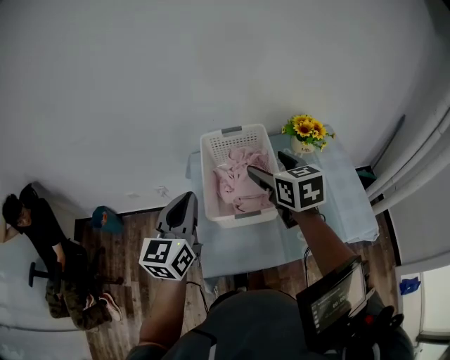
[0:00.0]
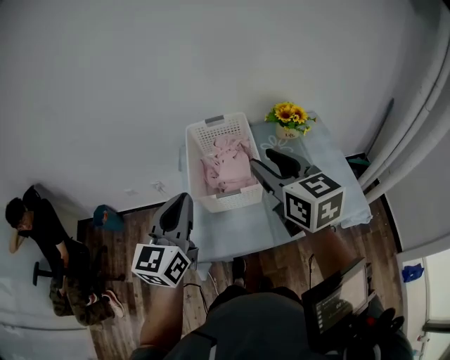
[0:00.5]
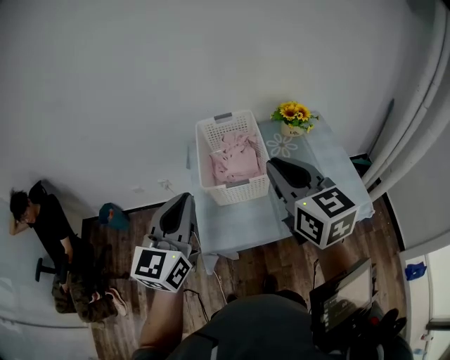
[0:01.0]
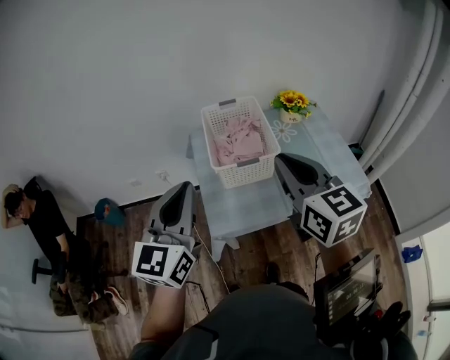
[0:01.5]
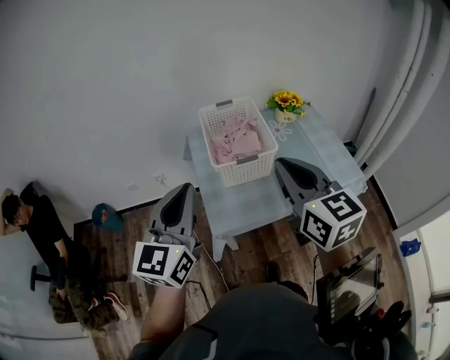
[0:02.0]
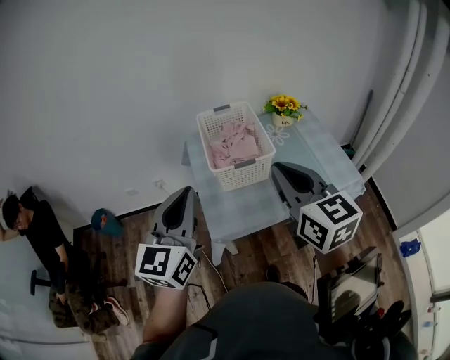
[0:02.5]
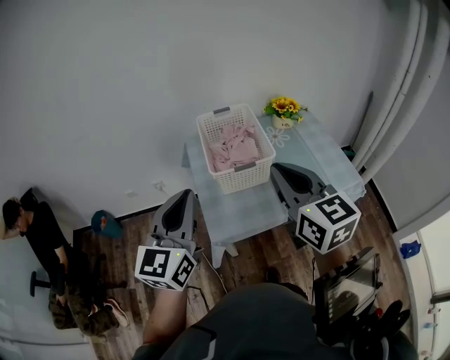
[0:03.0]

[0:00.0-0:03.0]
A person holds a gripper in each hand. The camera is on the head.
0:00.0 to 0:01.5: The right gripper shifts some 30 cm backward and upward, and closes its fingers; the left gripper goes about 20 cm backward.
0:01.5 to 0:03.0: The grippers move only a little.

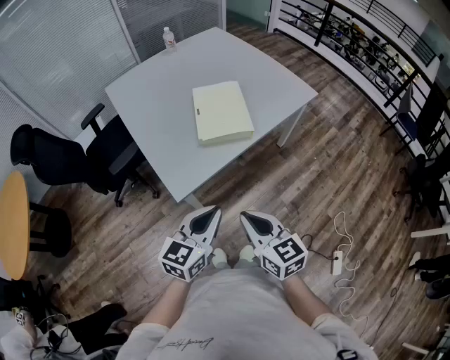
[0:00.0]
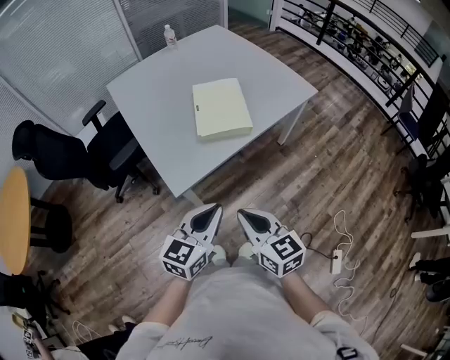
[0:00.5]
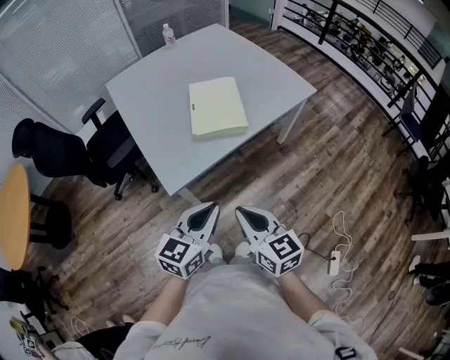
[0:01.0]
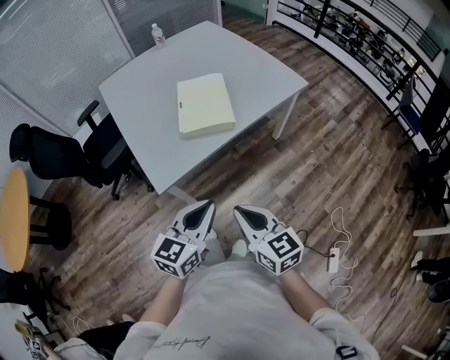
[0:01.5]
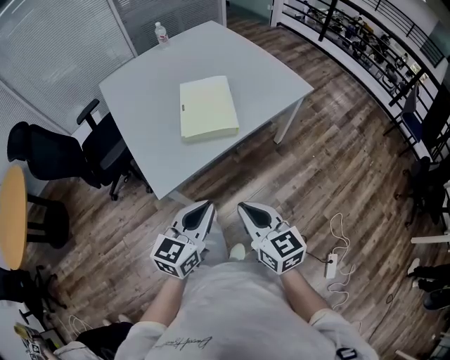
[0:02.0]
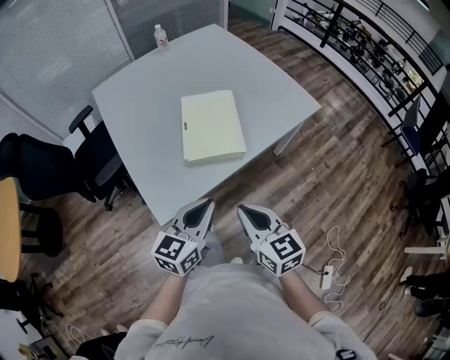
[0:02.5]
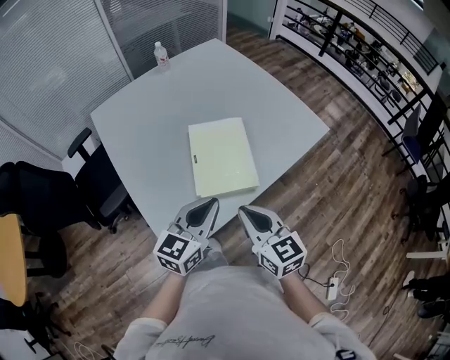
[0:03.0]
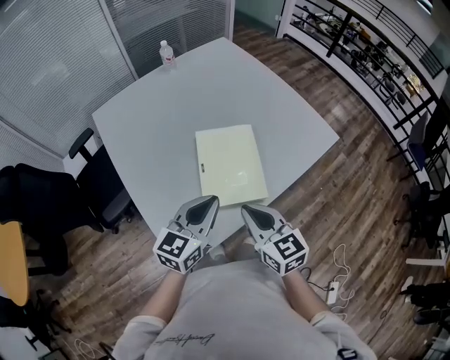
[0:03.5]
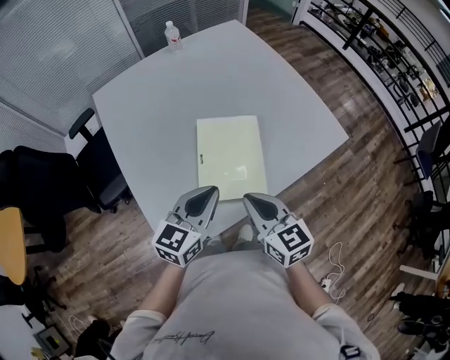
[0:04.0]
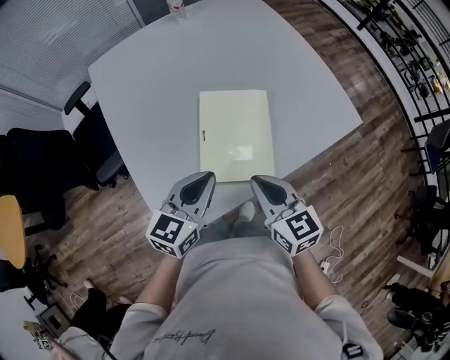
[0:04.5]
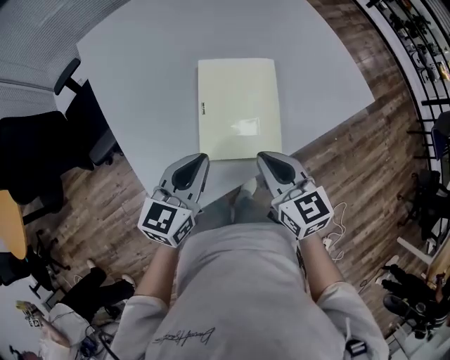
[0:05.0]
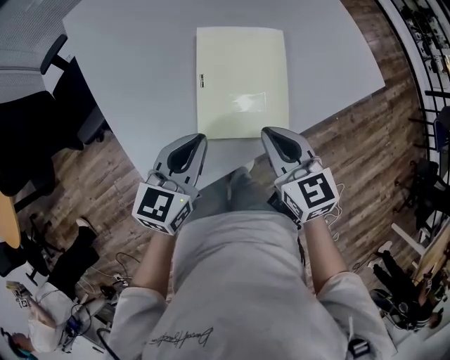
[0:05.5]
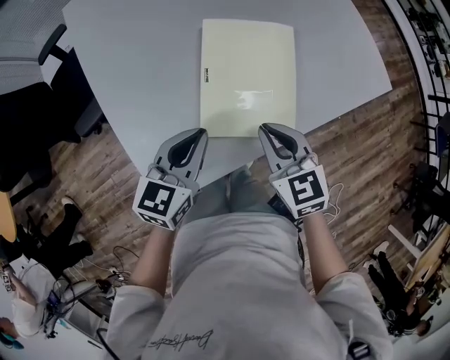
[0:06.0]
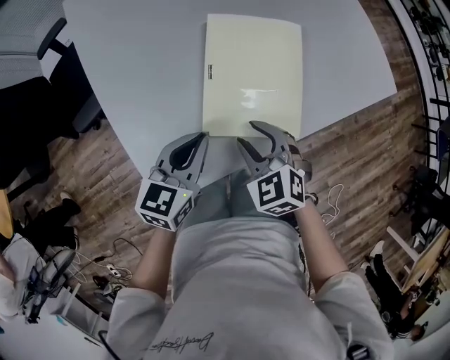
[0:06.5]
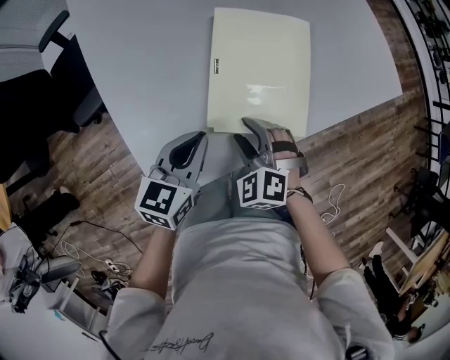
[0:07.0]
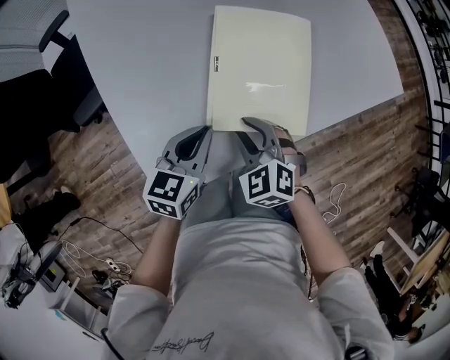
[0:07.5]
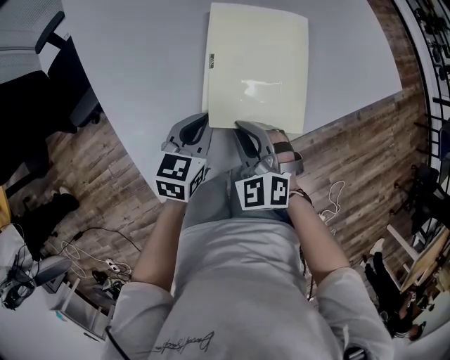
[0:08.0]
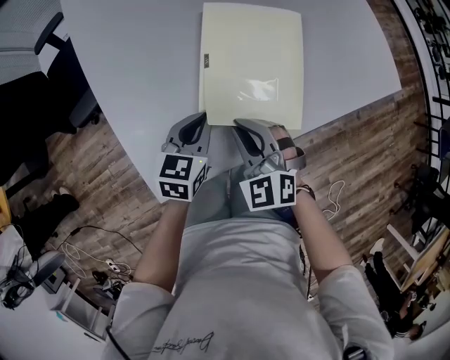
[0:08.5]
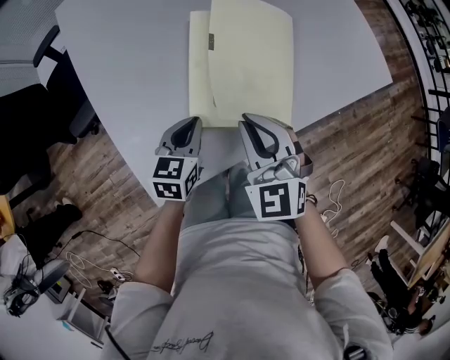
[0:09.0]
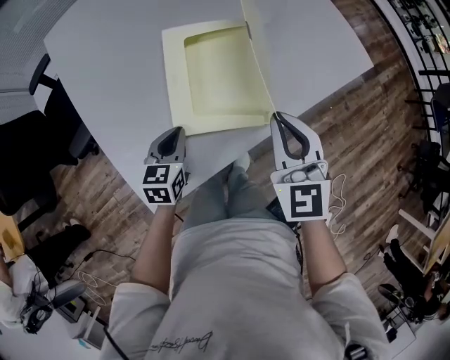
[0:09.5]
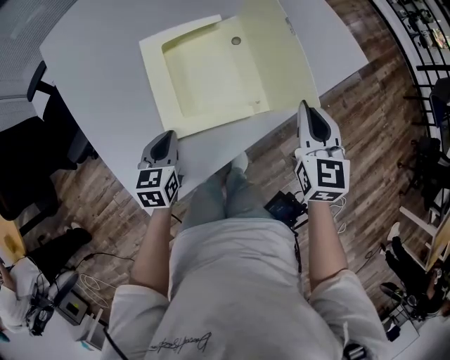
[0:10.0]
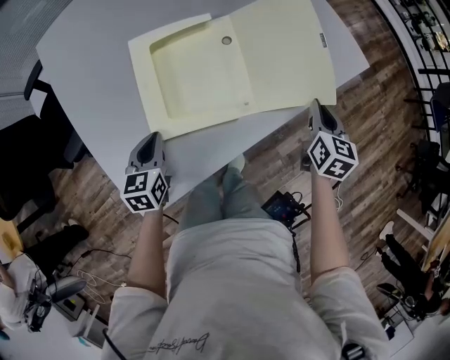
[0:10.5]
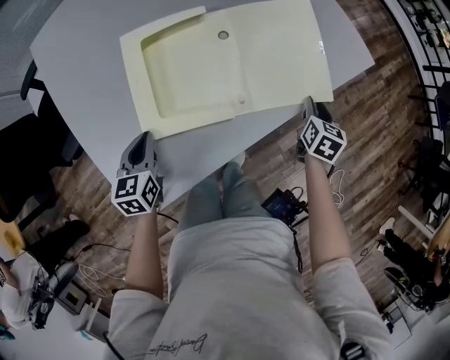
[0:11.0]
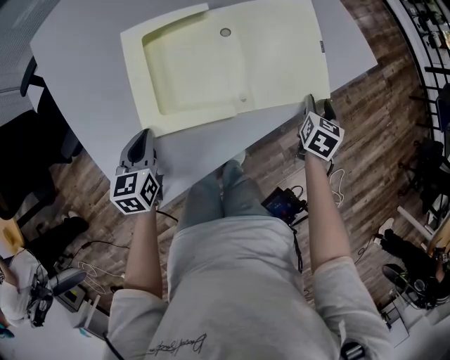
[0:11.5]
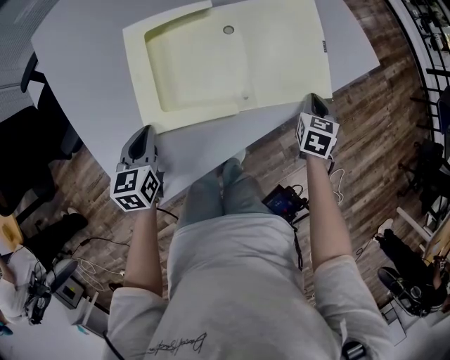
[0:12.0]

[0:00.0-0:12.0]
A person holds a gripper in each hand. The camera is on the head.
0:00.0 to 0:02.0: The two grippers go about 5 cm to the right.
0:02.0 to 0:04.0: Both grippers move forward, approximately 30 cm.
0:04.0 to 0:06.0: The right gripper heads downward, covering approximately 10 cm. Meanwhile the left gripper is displaced downward and to the left by about 10 cm.
0:06.0 to 0:08.0: The left gripper heads downward, covering approximately 10 cm. Meanwhile the right gripper travels downward and to the left by about 10 cm, rotates about 30 degrees, and opens, then closes again.
0:08.0 to 0:10.0: The right gripper is displaced to the right and upward by some 25 cm, and rolls clockwise, seen from behind, by roughly 40 degrees.
0:10.0 to 0:12.0: The right gripper shifts approximately 20 cm downward and to the right, swivels roughly 30 degrees, and opens, then closes again.

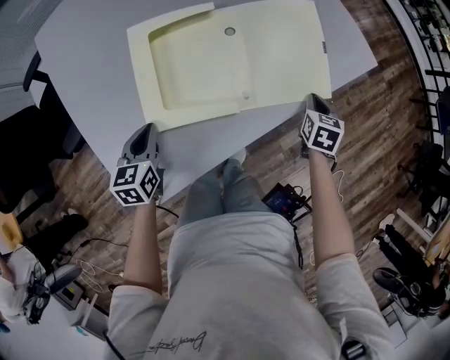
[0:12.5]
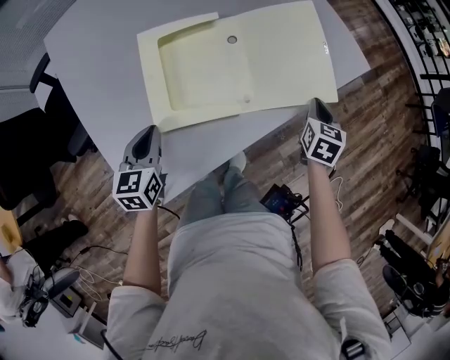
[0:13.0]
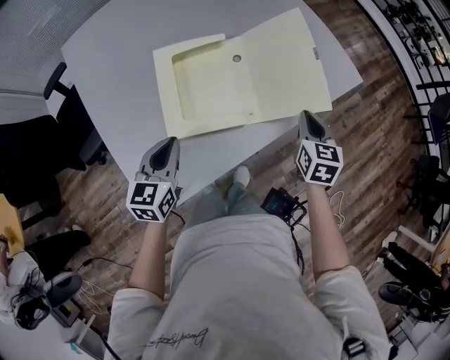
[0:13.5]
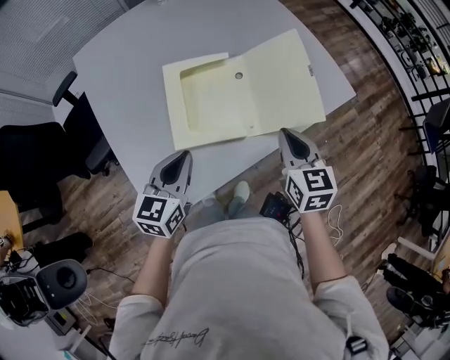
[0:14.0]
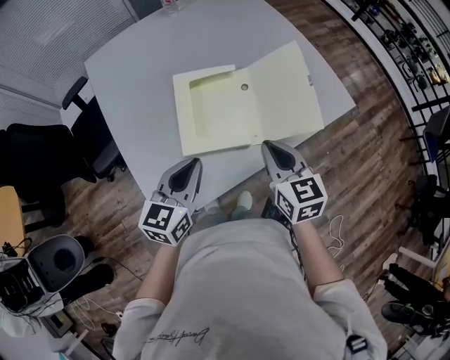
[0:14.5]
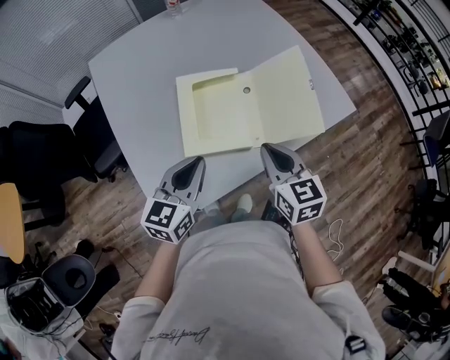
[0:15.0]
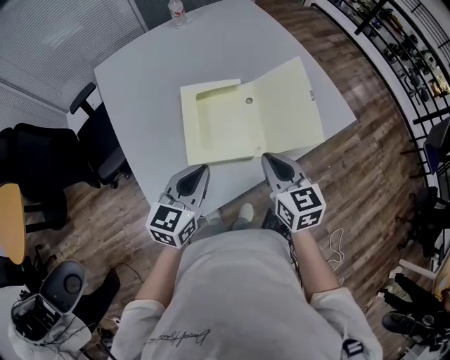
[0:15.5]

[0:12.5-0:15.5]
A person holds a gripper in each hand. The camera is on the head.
0:12.5 to 0:14.0: The left gripper moves upward and to the right, some 15 cm, and rotates some 20 degrees. Meanwhile the right gripper goes roughly 25 cm upward and to the left, and changes its angle by some 30 degrees.
0:14.0 to 0:15.5: The right gripper travels to the left by roughly 5 cm.

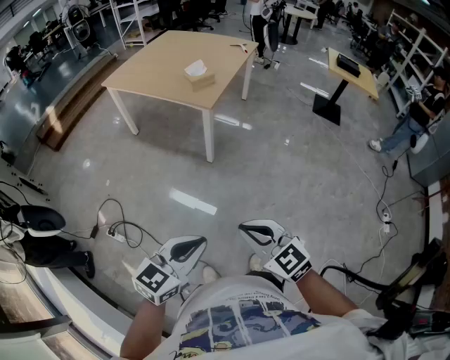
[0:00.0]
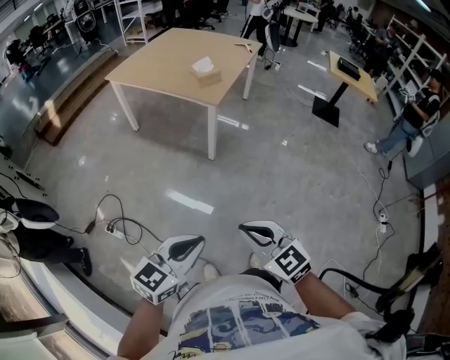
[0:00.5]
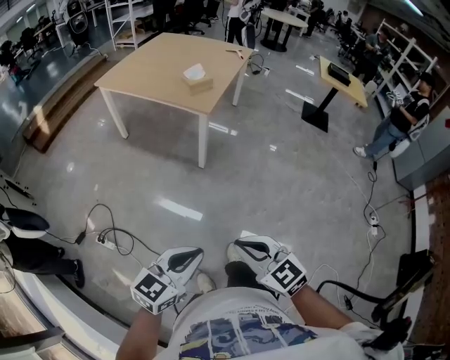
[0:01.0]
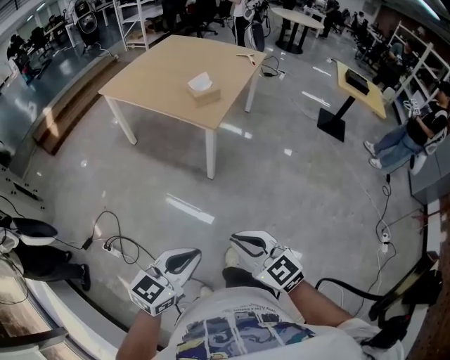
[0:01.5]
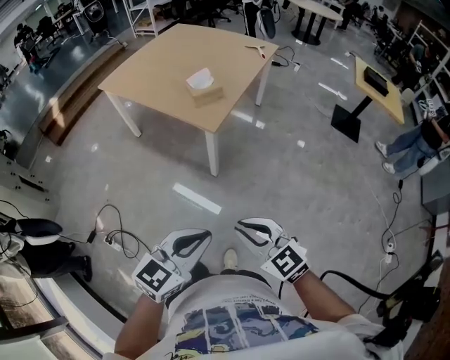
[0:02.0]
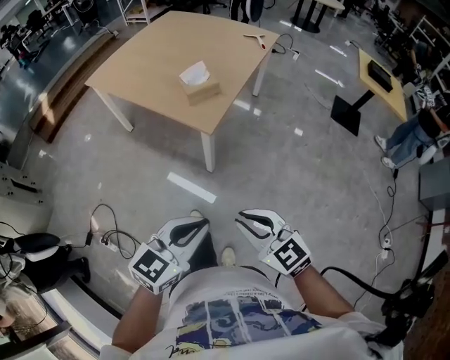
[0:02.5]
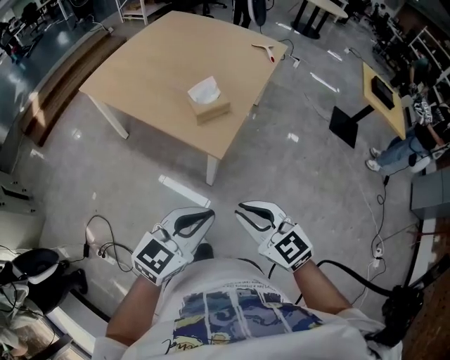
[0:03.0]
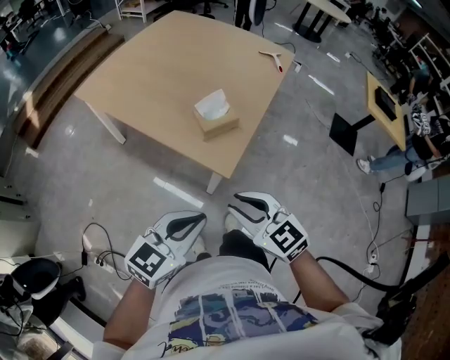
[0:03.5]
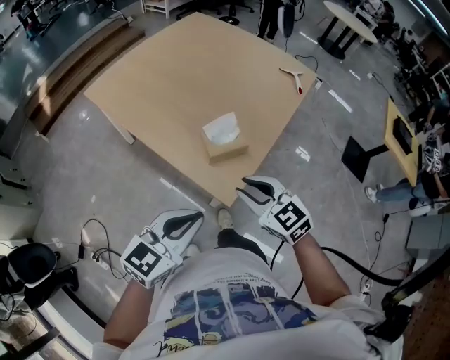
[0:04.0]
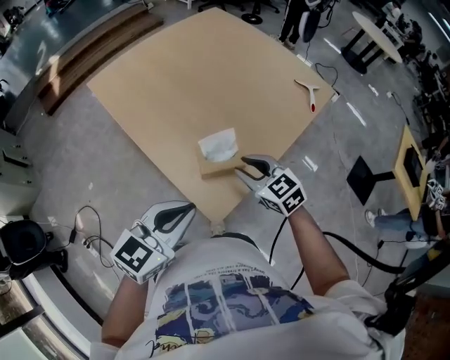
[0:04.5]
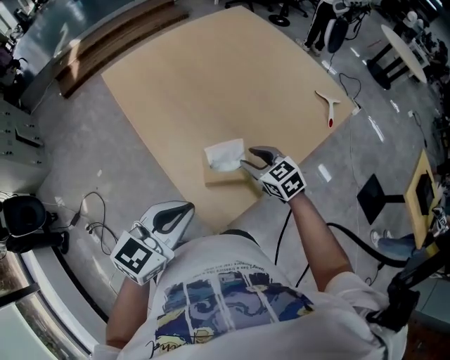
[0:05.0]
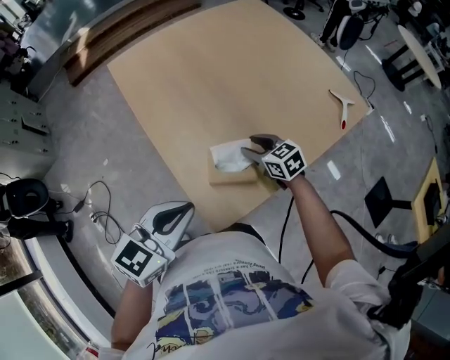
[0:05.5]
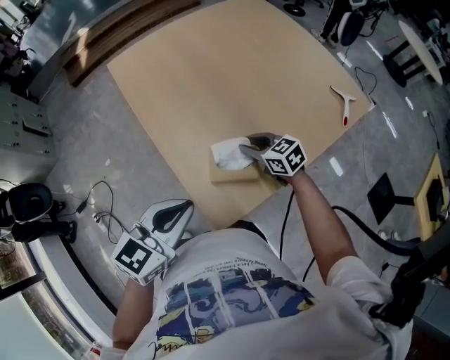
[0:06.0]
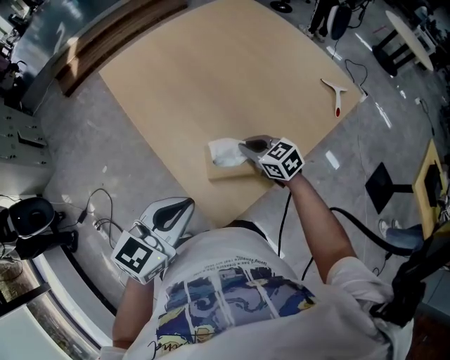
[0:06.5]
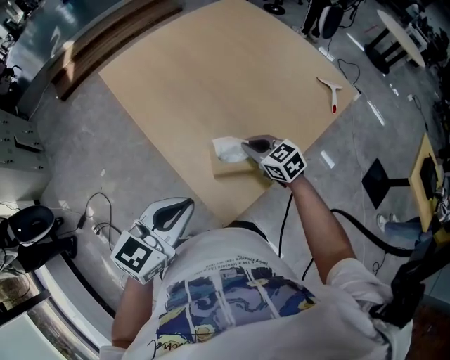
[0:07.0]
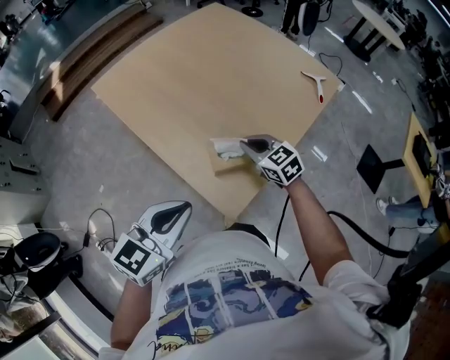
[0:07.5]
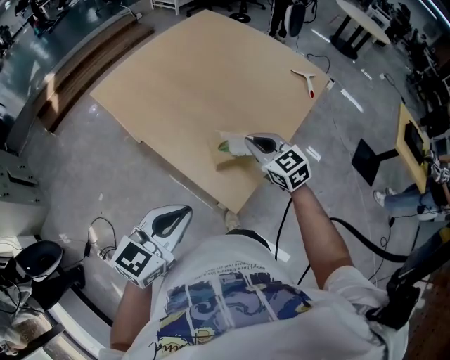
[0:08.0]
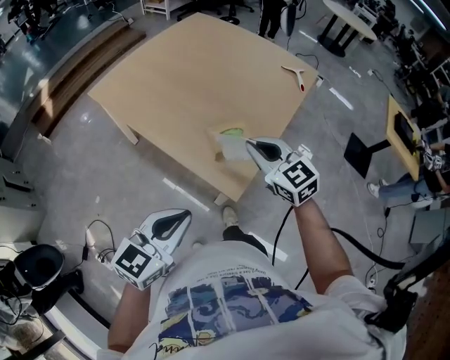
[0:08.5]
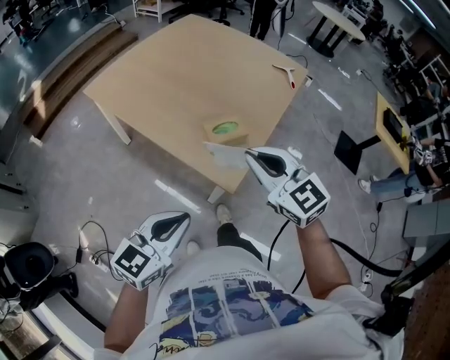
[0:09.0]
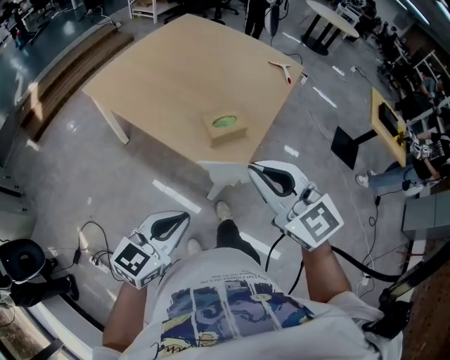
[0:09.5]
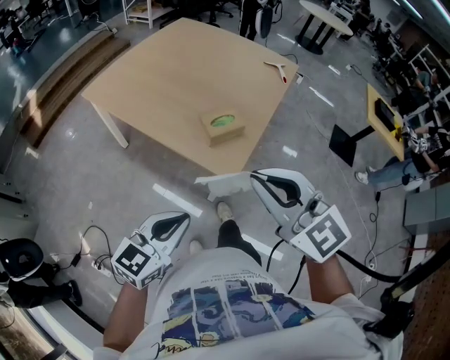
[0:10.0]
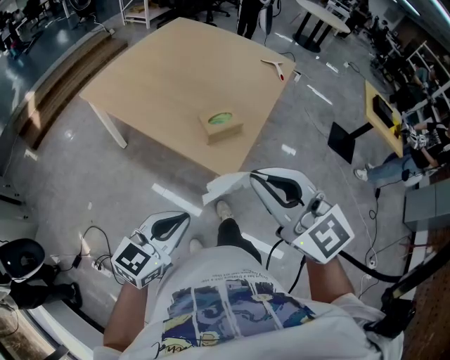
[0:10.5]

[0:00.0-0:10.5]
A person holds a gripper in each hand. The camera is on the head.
0:00.0 to 0:02.0: The grippers both shift forward by roughly 25 cm.
0:02.0 to 0:04.0: The pair of grippers is taken forward, some 50 cm.
0:04.0 to 0:06.5: The left gripper moves approximately 15 cm, and turns by about 20 degrees; the right gripper ends up approximately 30 cm from where it was, changes its angle by roughly 20 degrees, and closes.
0:06.5 to 0:08.5: The left gripper goes roughly 15 cm backward and to the left; the right gripper is displaced upward and backward by about 25 cm, and rotates roughly 30 degrees.
0:08.5 to 0:10.5: The right gripper goes approximately 25 cm backward and upward; the left gripper travels backward by approximately 10 cm.
